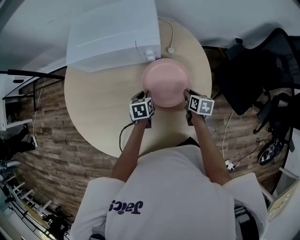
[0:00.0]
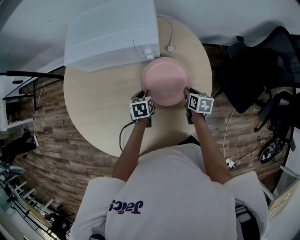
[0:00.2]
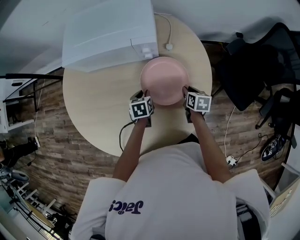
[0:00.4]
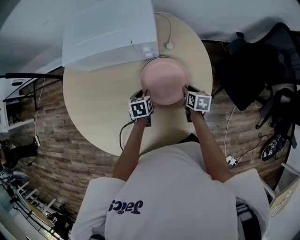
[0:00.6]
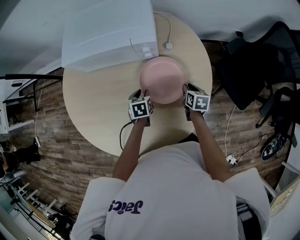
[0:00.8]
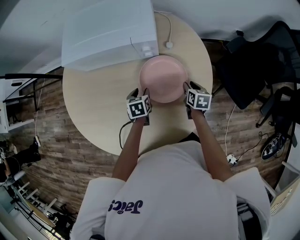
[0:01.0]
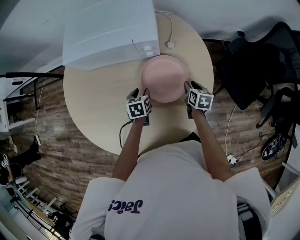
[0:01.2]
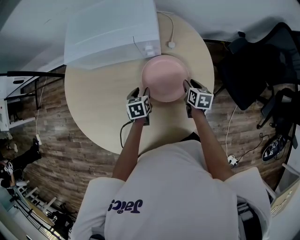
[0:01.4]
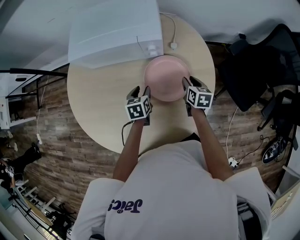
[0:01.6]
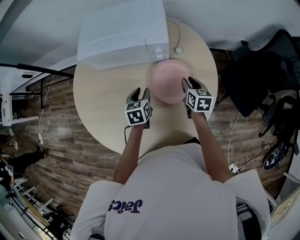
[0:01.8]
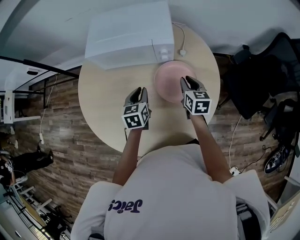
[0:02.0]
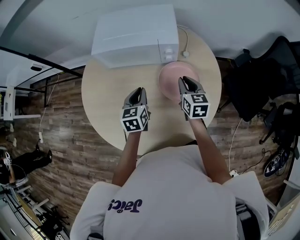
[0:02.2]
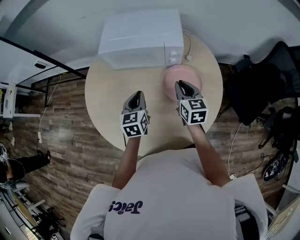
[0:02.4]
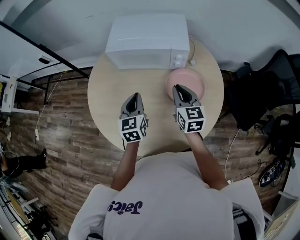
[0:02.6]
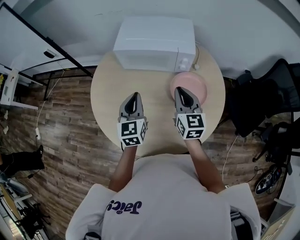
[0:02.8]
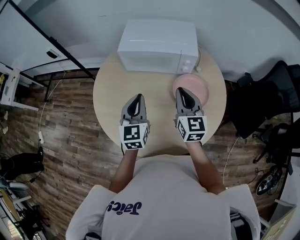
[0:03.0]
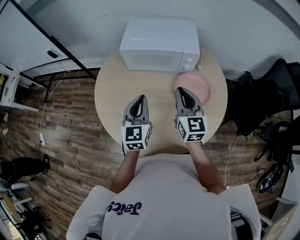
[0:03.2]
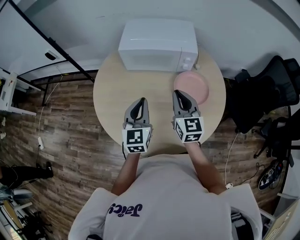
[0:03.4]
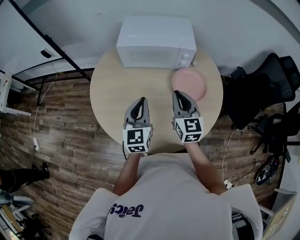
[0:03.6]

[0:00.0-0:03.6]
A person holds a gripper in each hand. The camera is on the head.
0:00.0 to 0:01.8: The right gripper moves upward and to the left, approximately 10 cm. Meanwhile the left gripper is displaced upward by about 5 cm, and opens.
0:01.8 to 0:03.6: The right gripper is displaced to the left, upward and backward by about 35 cm, rotates some 30 degrees, and closes its fingers. Meanwhile the left gripper shifts roughly 30 cm upward, to the left and backward, tips its fingers upward by roughly 40 degrees, and closes.

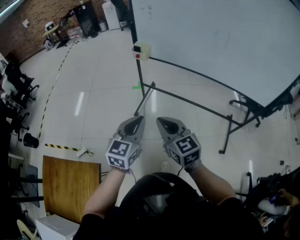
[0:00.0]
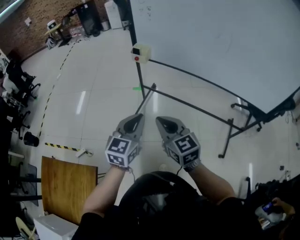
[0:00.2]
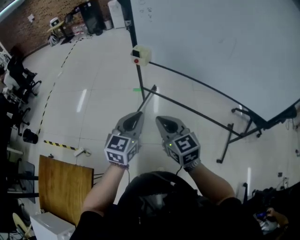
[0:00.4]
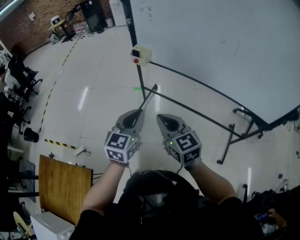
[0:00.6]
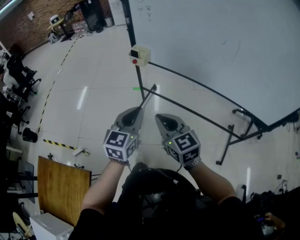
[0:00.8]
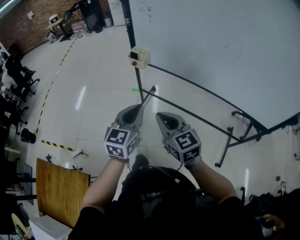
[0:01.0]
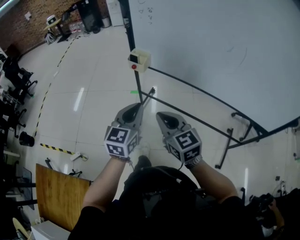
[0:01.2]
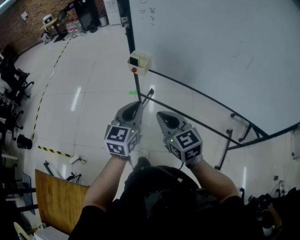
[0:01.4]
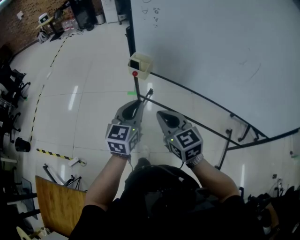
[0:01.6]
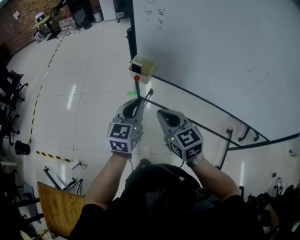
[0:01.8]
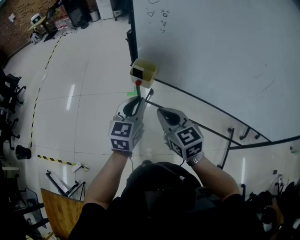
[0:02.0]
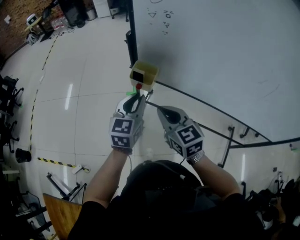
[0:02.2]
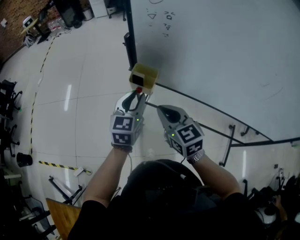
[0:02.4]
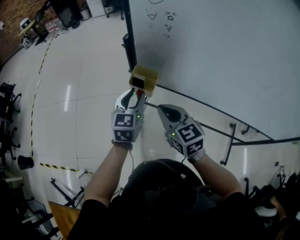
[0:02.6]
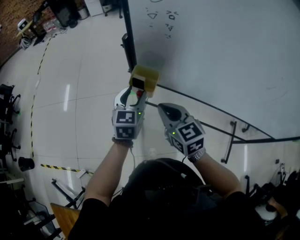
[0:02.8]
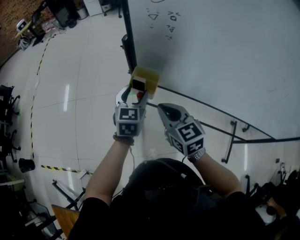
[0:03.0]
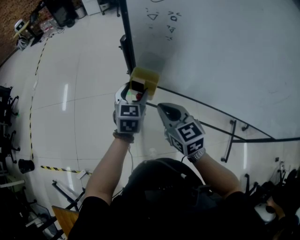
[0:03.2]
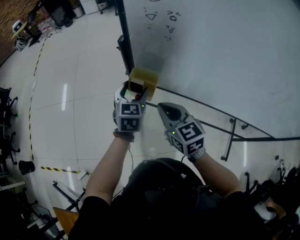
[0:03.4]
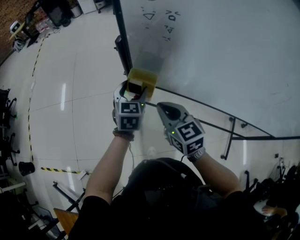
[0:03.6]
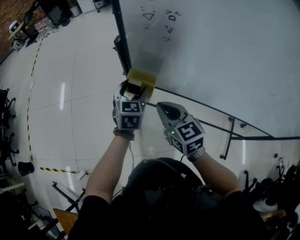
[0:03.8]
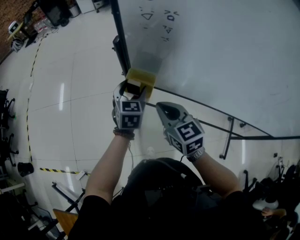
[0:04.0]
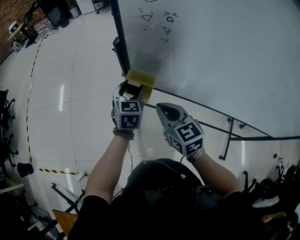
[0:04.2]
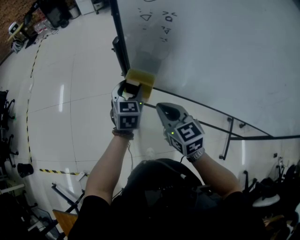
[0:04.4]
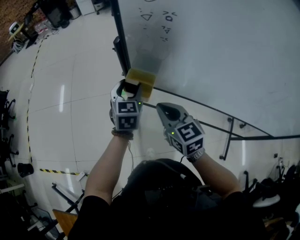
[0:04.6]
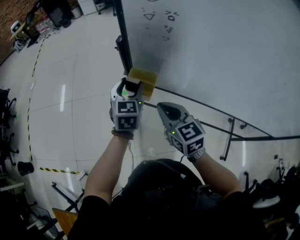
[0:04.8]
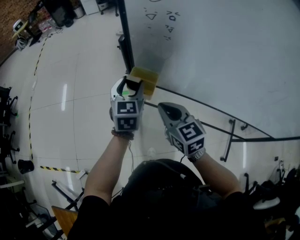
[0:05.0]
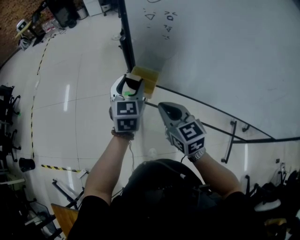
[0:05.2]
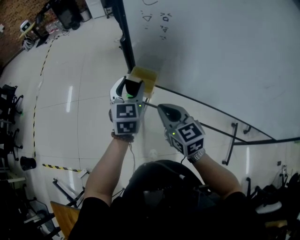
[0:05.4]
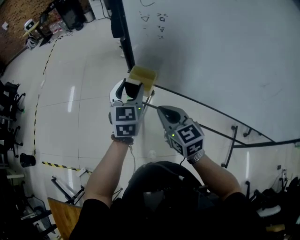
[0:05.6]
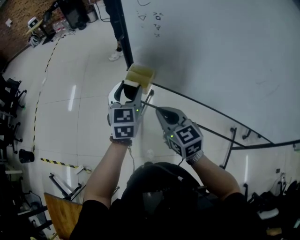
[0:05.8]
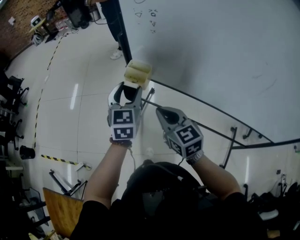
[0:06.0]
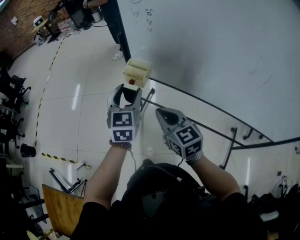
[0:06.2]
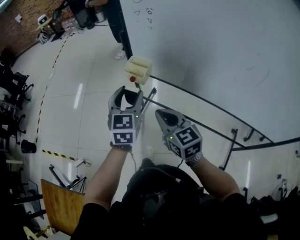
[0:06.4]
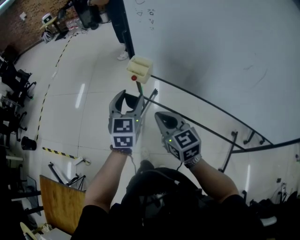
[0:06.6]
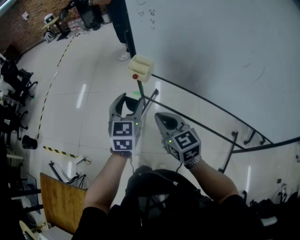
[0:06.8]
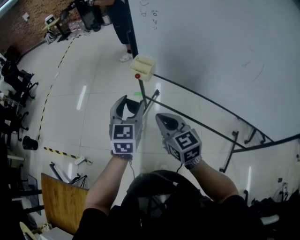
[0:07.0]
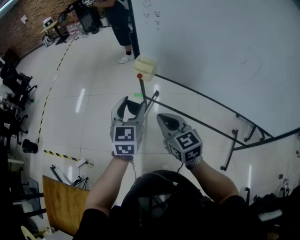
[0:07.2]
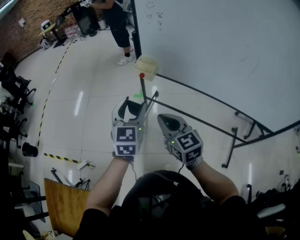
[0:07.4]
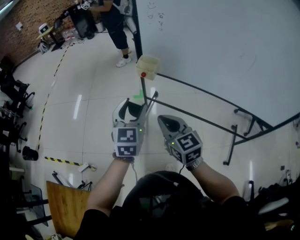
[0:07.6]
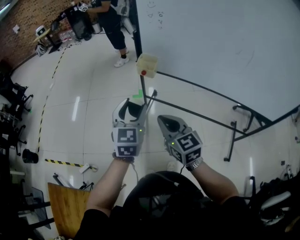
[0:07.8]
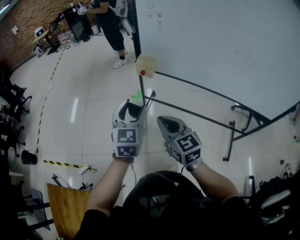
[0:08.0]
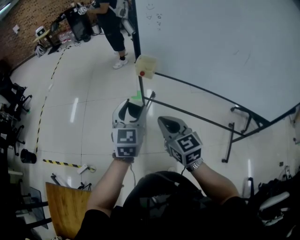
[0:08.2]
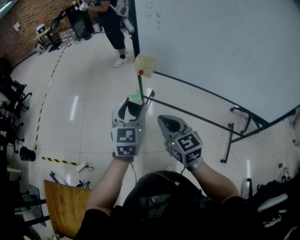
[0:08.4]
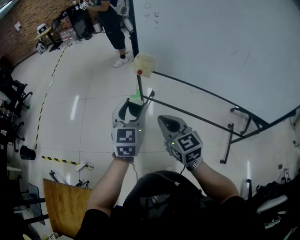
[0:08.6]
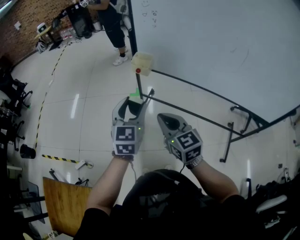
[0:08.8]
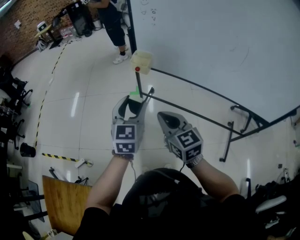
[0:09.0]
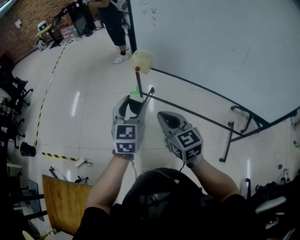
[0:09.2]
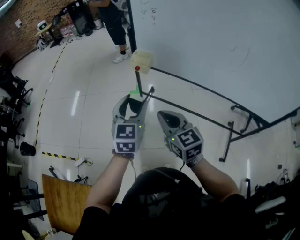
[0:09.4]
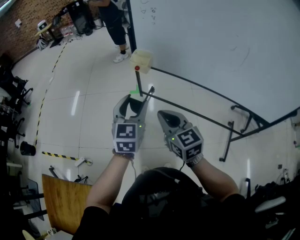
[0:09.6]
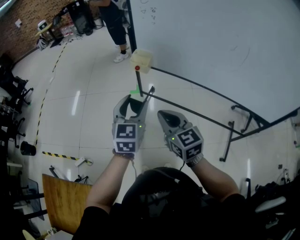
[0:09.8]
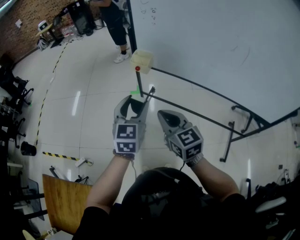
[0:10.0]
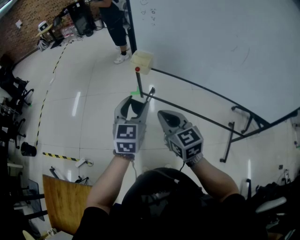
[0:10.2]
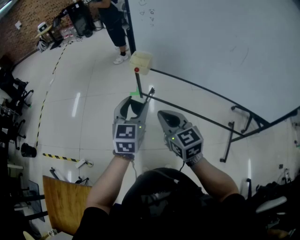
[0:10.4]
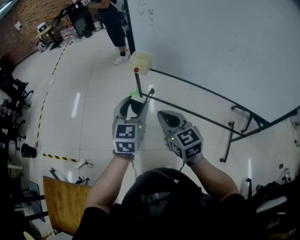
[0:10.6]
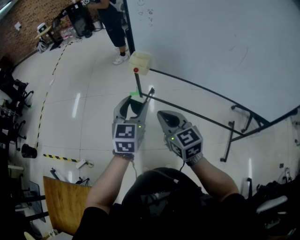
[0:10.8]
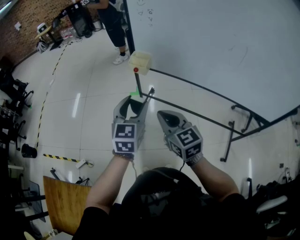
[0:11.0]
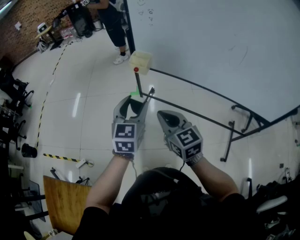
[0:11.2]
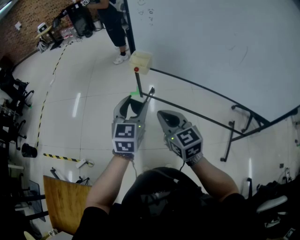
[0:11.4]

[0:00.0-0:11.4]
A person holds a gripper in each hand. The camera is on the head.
0:00.0 to 0:01.4: The grippers both shift forward by some 25 cm.
0:01.4 to 0:02.8: Both grippers move forward, approximately 25 cm. The left gripper opens its fingers.
0:02.8 to 0:04.2: The left gripper goes some 5 cm forward.
0:04.2 to 0:05.6: The right gripper goes roughly 5 cm backward; the left gripper travels upward and backward by approximately 15 cm.
0:05.6 to 0:07.2: The two grippers go about 20 cm backward.
0:07.2 to 0:08.6: Both grippers travel together backward, roughly 5 cm.
0:08.6 to 0:10.0: There are only small adjustments of the grippers.
0:10.0 to 0:11.4: Both grippers stay put.

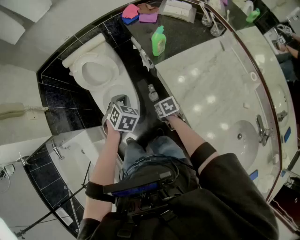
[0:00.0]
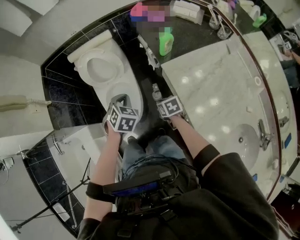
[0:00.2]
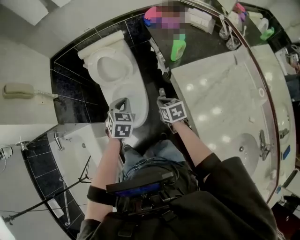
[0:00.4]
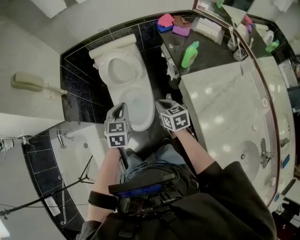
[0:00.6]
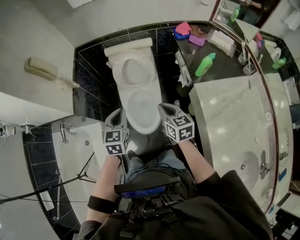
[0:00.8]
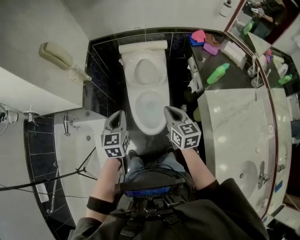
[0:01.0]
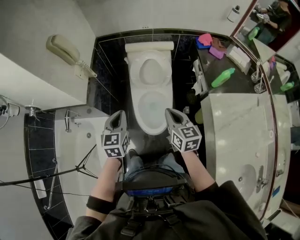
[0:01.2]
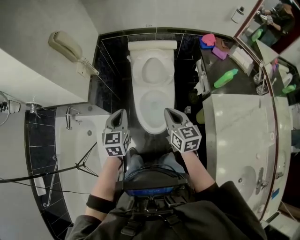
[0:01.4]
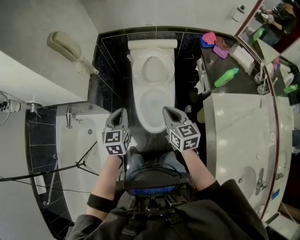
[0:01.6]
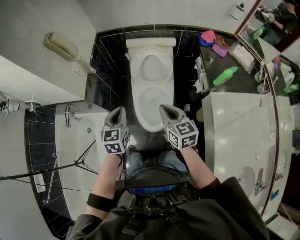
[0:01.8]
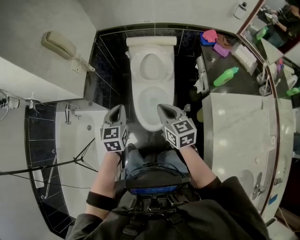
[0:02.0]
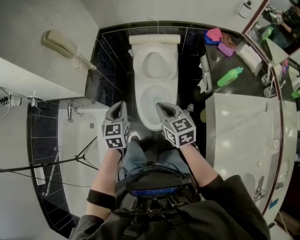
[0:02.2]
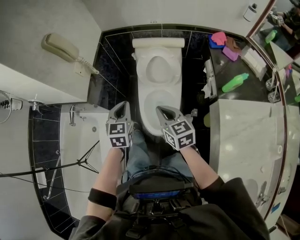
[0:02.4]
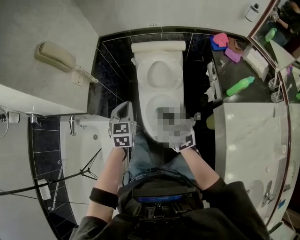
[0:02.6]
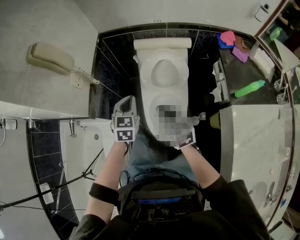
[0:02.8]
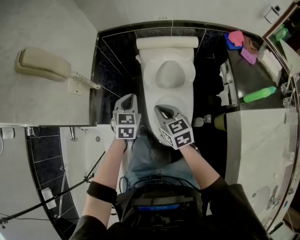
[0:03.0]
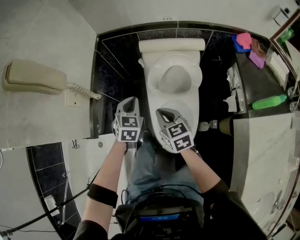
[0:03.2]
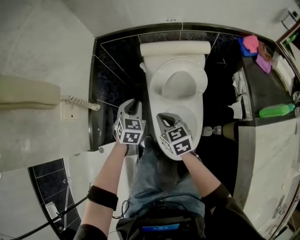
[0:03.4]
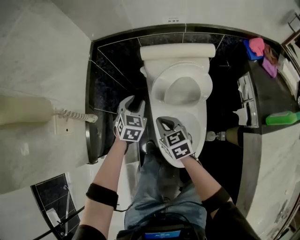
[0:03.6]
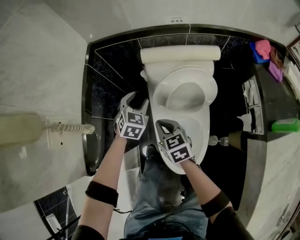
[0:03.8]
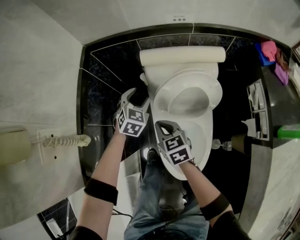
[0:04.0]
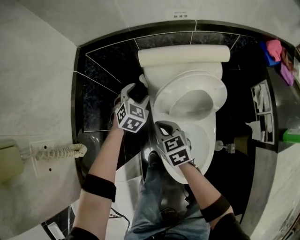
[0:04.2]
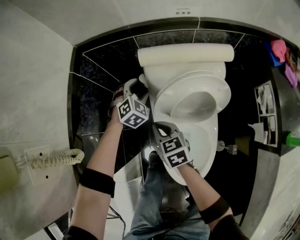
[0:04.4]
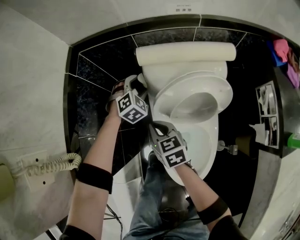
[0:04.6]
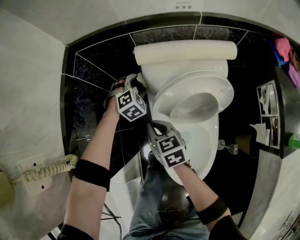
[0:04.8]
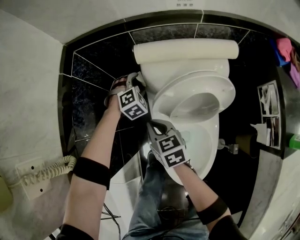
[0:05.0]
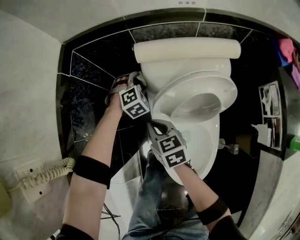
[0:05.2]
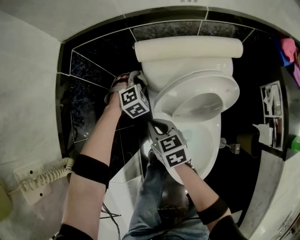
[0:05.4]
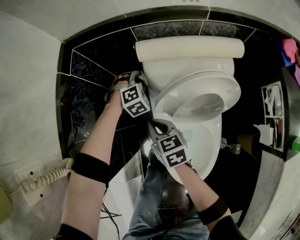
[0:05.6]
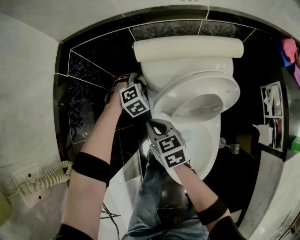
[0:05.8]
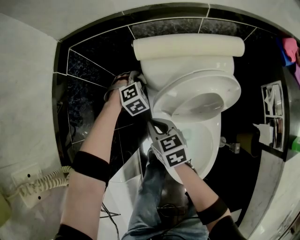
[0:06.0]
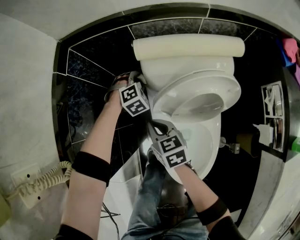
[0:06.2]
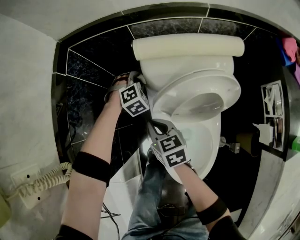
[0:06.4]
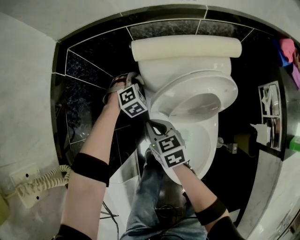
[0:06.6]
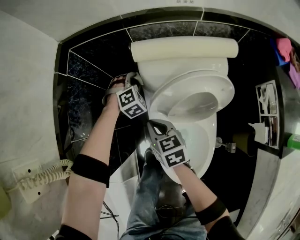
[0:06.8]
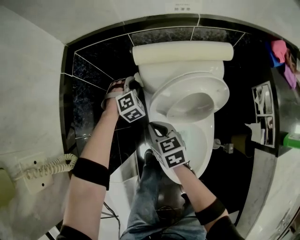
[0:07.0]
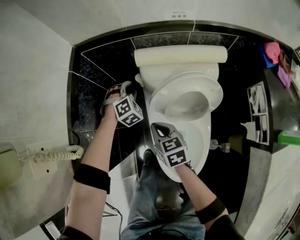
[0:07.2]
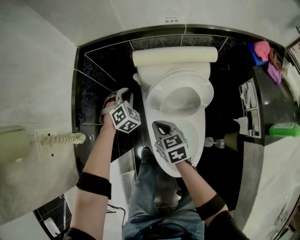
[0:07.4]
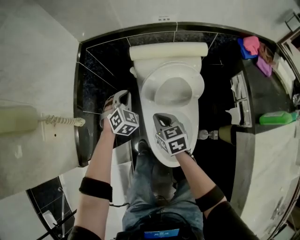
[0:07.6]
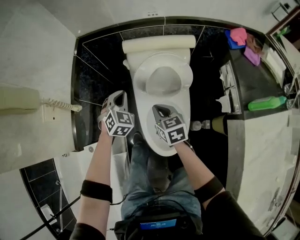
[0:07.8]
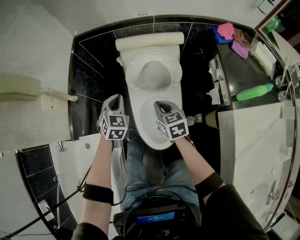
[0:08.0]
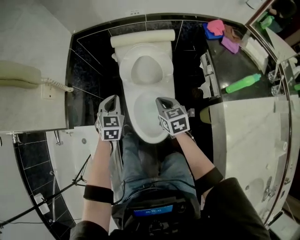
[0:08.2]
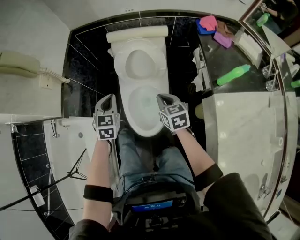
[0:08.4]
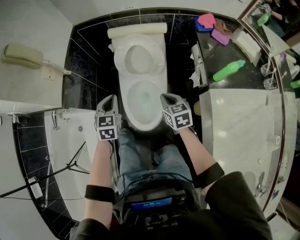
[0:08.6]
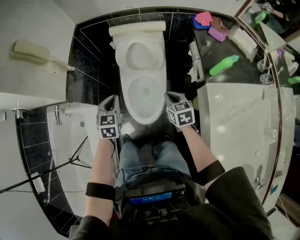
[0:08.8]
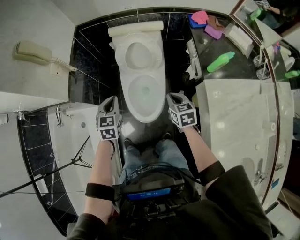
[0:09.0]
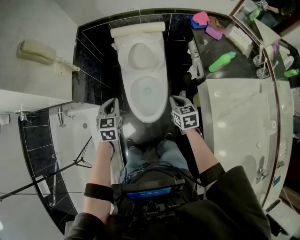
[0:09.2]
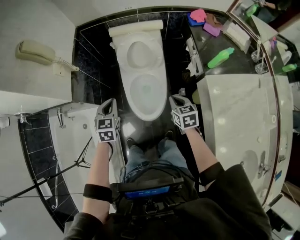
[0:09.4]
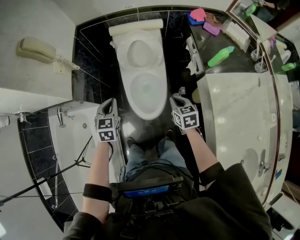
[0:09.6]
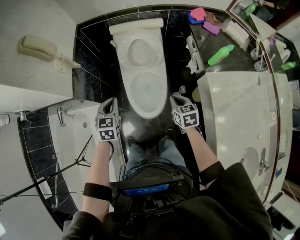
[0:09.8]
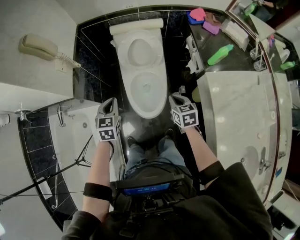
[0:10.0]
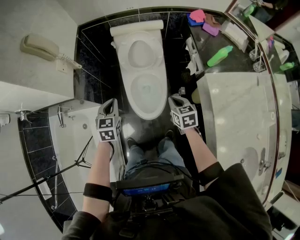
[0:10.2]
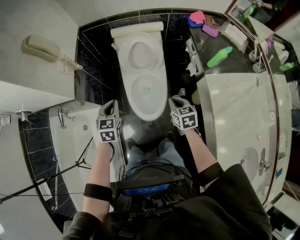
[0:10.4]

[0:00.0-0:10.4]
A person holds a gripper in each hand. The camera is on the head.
0:00.0 to 0:01.4: The right gripper moves upward and to the left, some 35 cm, and points its fingers some 40 degrees further upward; the left gripper is displaced to the left by some 35 cm, and turns by roughly 50 degrees.
0:01.4 to 0:03.0: The right gripper heads forward, downward and to the left, covering some 25 cm. The left gripper heads forward and downward, covering roughly 25 cm.
0:03.0 to 0:04.4: The left gripper goes about 40 cm forward and downward, swivels about 40 degrees, and opens. Meanwhile the right gripper travels downward and forward by some 30 cm.
0:04.4 to 0:06.0: The left gripper travels downward by approximately 10 cm, and turns by about 20 degrees.
0:06.0 to 0:07.4: Both grippers move upward and backward, some 15 cm. The left gripper closes.
0:07.4 to 0:09.0: The left gripper shifts roughly 50 cm backward and upward, and twists approximately 50 degrees counterclockwise, seen from behind; the right gripper moves backward, to the right and upward, roughly 40 cm.
0:09.0 to 0:10.4: The left gripper moves to the left, approximately 5 cm, while the right gripper moves approximately 5 cm.
